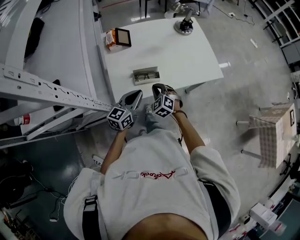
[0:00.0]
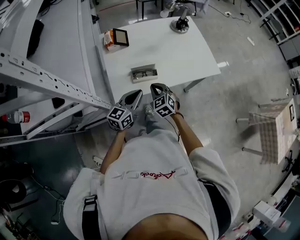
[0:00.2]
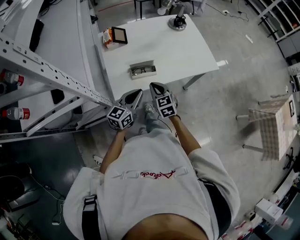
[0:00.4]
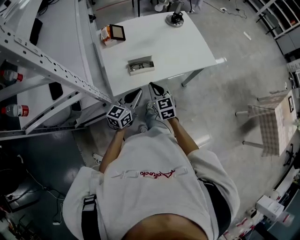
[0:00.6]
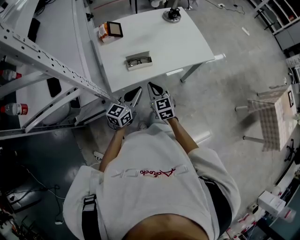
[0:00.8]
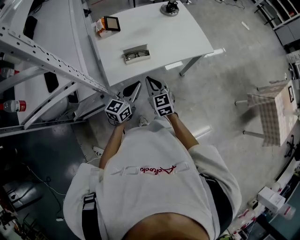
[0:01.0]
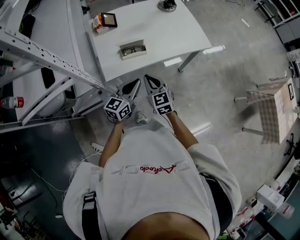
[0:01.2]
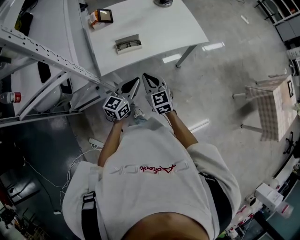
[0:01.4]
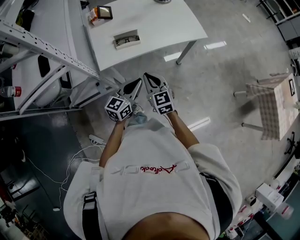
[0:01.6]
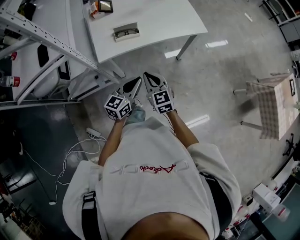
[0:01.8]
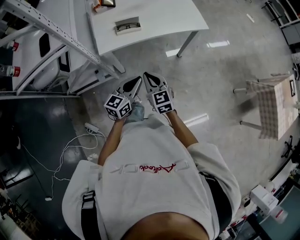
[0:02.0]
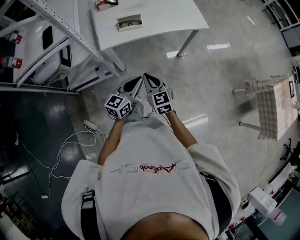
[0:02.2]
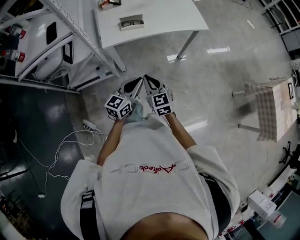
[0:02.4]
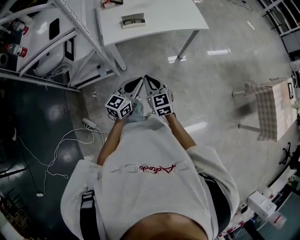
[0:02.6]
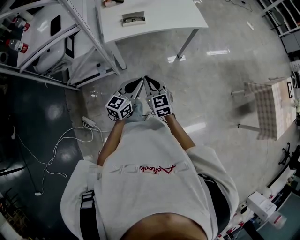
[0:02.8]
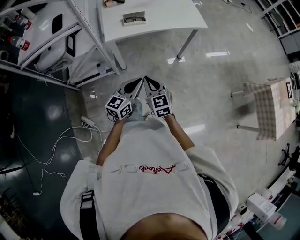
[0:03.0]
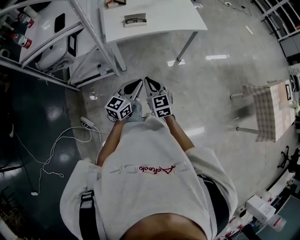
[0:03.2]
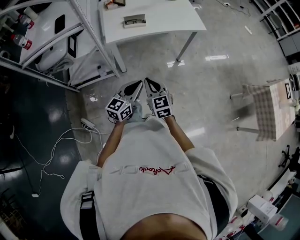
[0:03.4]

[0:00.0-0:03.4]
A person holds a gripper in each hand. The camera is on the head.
0:00.0 to 0:01.6: The right gripper is displaced backward, upward and to the right by some 25 cm, and rotates some 40 degrees, while the left gripper shifts some 20 cm backward and to the right.
0:01.6 to 0:03.4: The grippers both shift backward by about 20 cm.

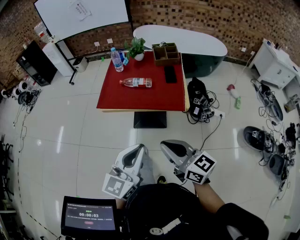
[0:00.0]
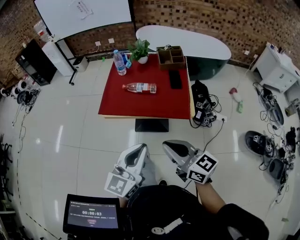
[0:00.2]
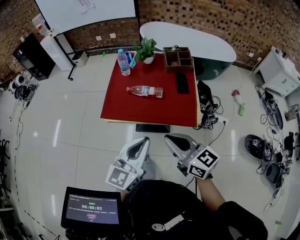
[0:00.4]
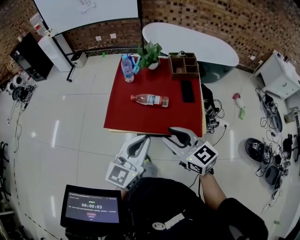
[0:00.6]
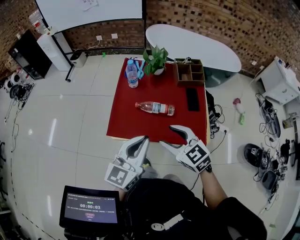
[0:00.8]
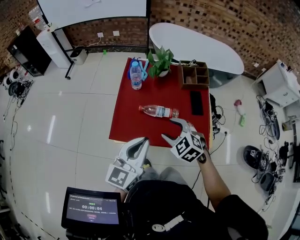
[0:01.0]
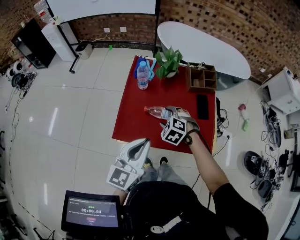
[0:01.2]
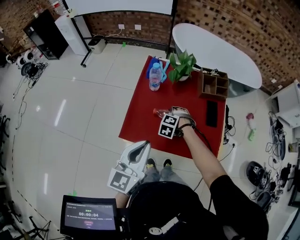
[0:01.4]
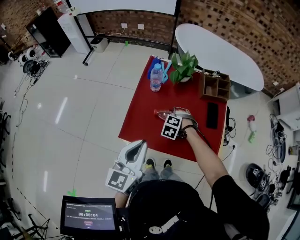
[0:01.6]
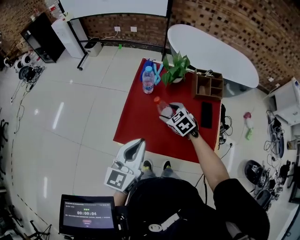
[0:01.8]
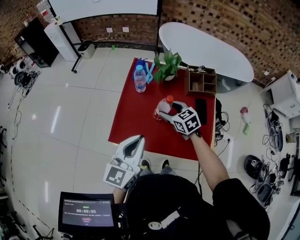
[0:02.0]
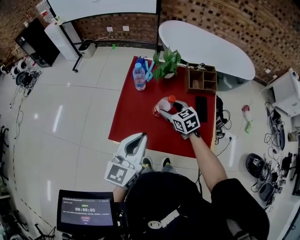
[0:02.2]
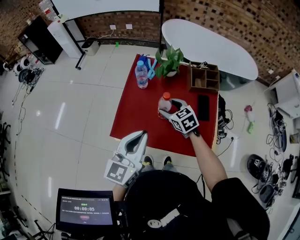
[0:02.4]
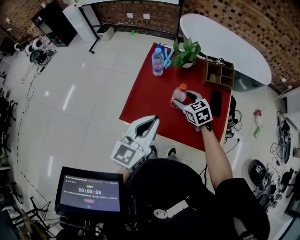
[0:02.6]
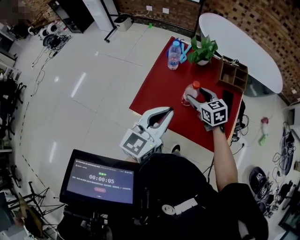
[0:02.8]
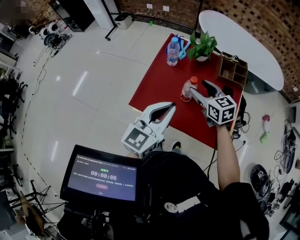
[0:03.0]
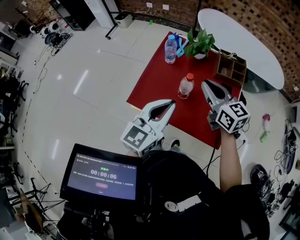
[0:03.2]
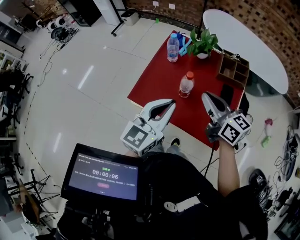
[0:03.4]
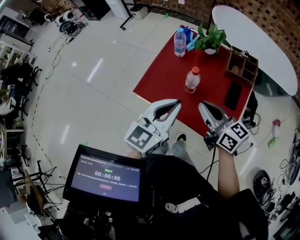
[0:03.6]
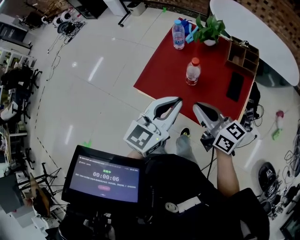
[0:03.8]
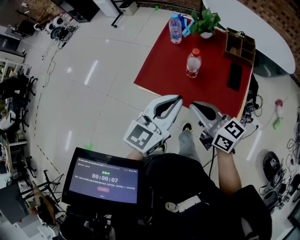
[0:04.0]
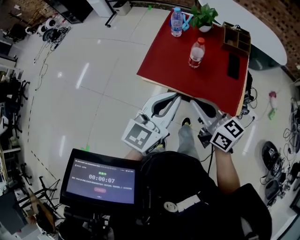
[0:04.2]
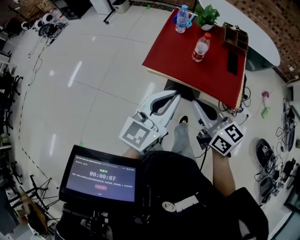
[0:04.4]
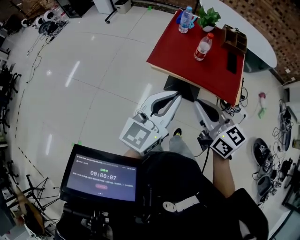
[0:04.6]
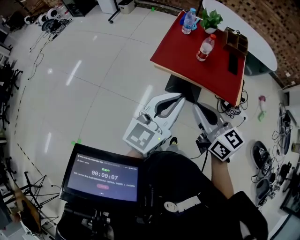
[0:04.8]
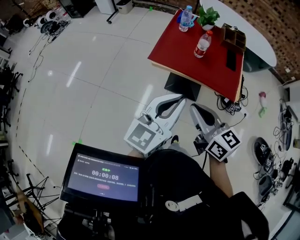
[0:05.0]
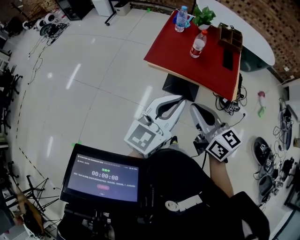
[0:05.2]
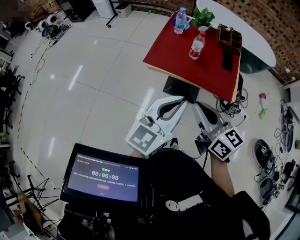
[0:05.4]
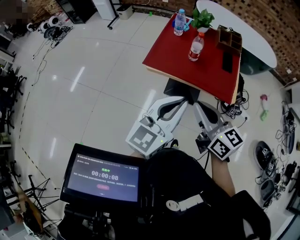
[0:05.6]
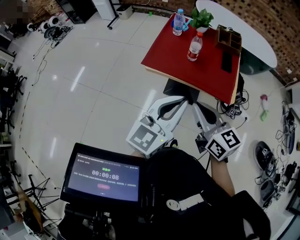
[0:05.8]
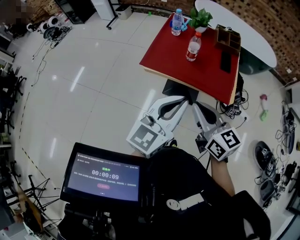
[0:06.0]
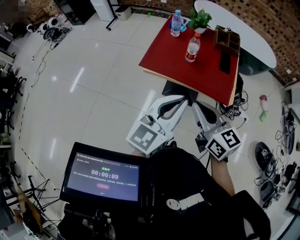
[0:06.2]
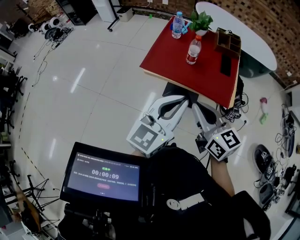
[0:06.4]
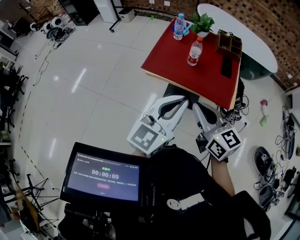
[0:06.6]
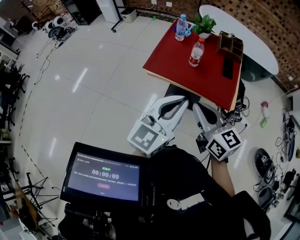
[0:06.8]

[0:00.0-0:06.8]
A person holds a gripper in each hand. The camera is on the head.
0:00.0 to 0:01.4: The left gripper shifts roughly 40 cm forward and to the left; the right gripper heads forward and downward, covering approximately 60 cm, angles its fingers downward, by roughly 70 degrees, and opens.
0:01.4 to 0:02.8: The right gripper shifts about 15 cm upward, and points its fingers about 30 degrees further upward. Meanwhile the left gripper moves roughly 5 cm.
0:02.8 to 0:04.0: The right gripper is displaced backward and upward by some 25 cm, changes its angle by about 40 degrees, and closes. The left gripper moves backward, roughly 10 cm.
0:04.0 to 0:05.4: Both grippers move backward and to the left, roughly 20 cm.
0:05.4 to 0:06.8: The grippers make only small movements.

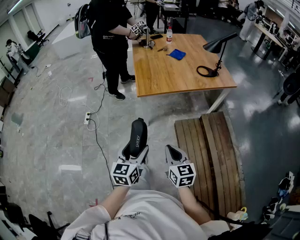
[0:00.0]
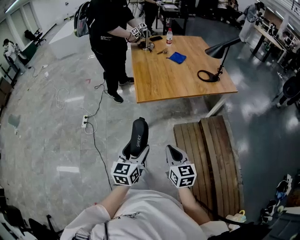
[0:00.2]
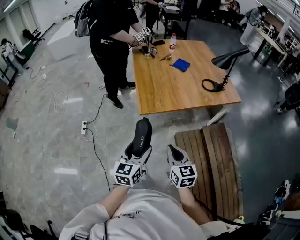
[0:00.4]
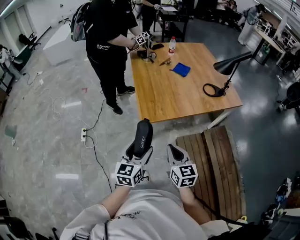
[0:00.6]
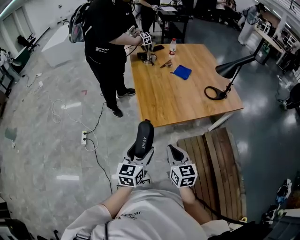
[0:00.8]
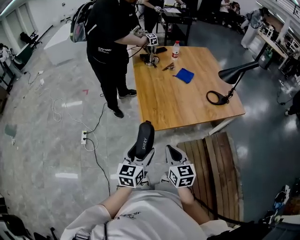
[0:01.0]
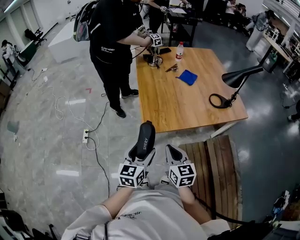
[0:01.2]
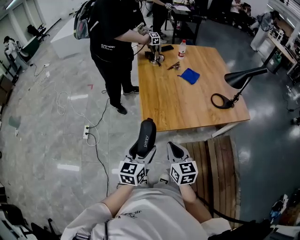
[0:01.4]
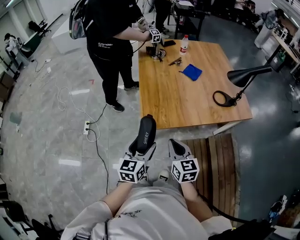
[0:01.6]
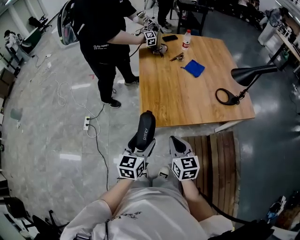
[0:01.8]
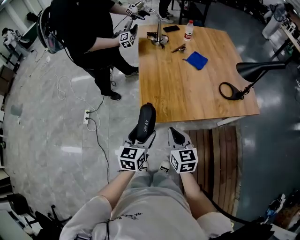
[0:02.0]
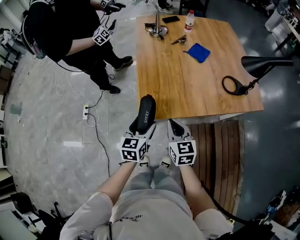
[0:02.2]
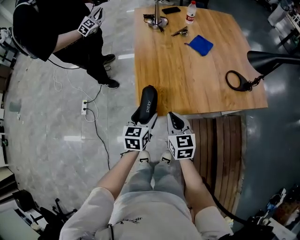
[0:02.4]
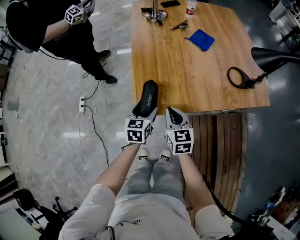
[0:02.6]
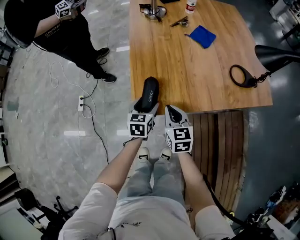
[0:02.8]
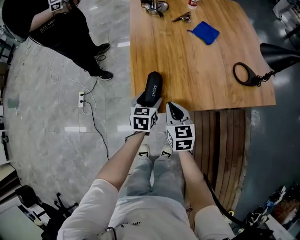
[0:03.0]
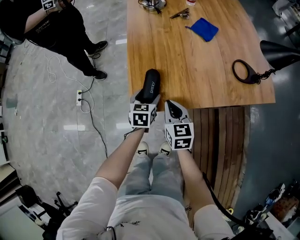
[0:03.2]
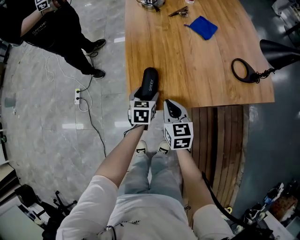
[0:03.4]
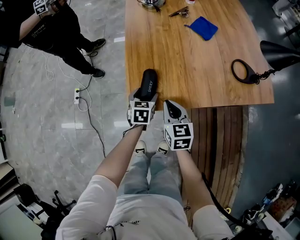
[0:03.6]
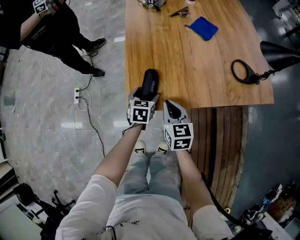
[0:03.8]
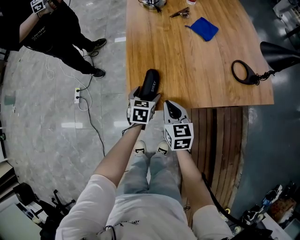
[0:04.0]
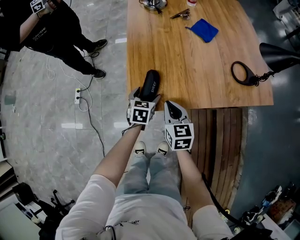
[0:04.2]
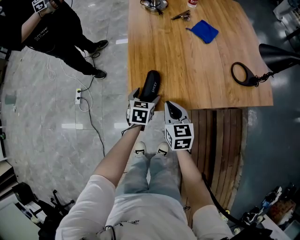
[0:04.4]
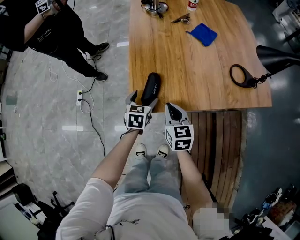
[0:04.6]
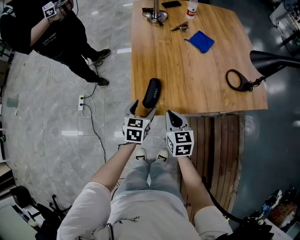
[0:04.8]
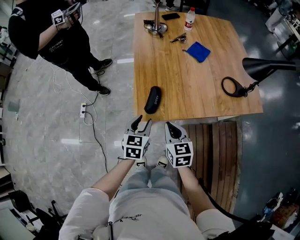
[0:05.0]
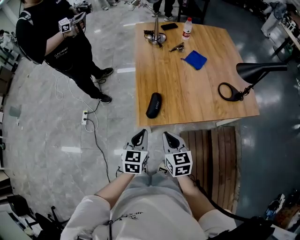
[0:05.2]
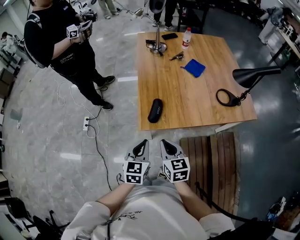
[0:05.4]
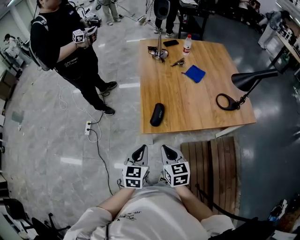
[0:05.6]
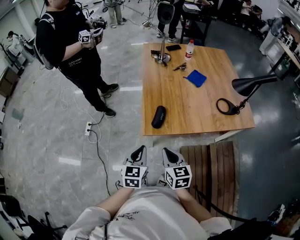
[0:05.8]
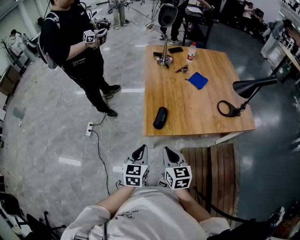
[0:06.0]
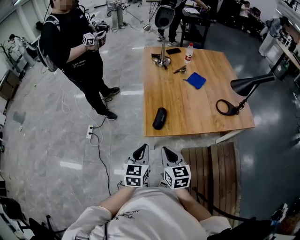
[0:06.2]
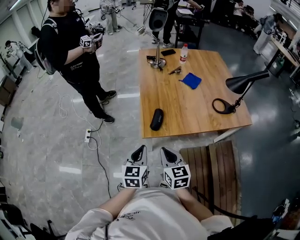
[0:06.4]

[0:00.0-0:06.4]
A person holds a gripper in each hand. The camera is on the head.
0:00.0 to 0:01.6: The grippers both shift forward by about 35 cm.
0:01.6 to 0:03.2: The left gripper goes about 35 cm downward and forward, and swivels some 20 degrees, while the right gripper goes roughly 25 cm forward and downward.
0:03.2 to 0:04.8: The right gripper changes place by some 5 cm, while the left gripper heads upward and backward, covering approximately 10 cm.
0:04.8 to 0:06.4: The right gripper shifts roughly 20 cm backward, upward and to the left. The left gripper heads backward and upward, covering roughly 25 cm, and closes up.

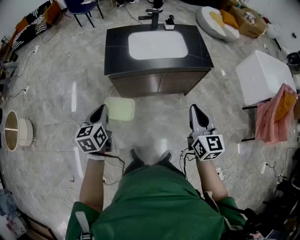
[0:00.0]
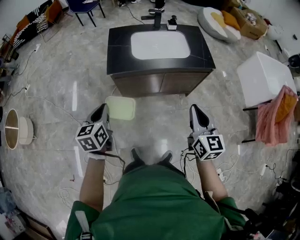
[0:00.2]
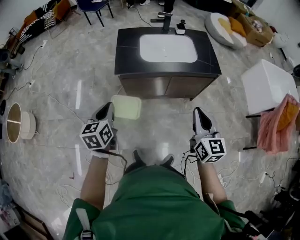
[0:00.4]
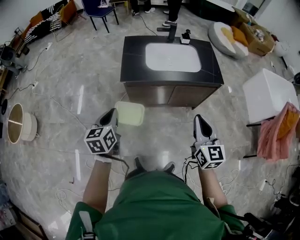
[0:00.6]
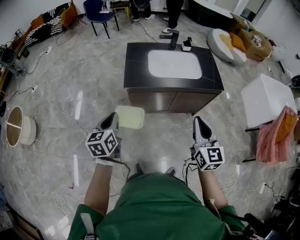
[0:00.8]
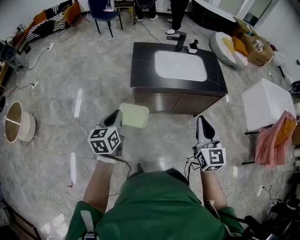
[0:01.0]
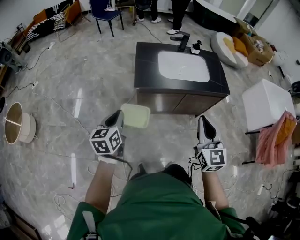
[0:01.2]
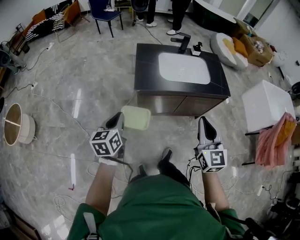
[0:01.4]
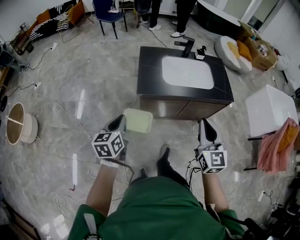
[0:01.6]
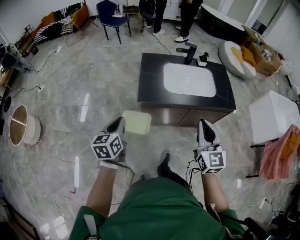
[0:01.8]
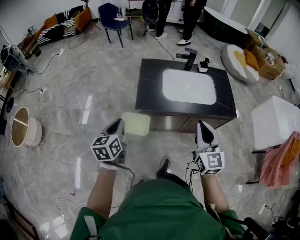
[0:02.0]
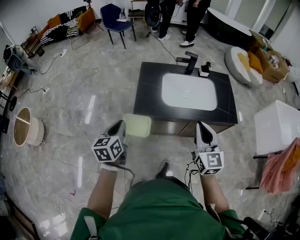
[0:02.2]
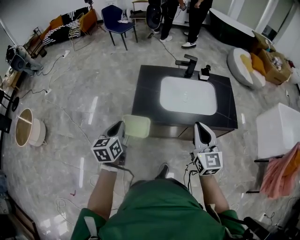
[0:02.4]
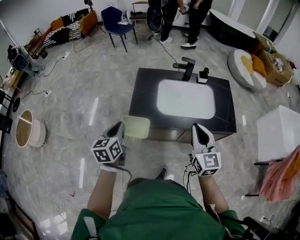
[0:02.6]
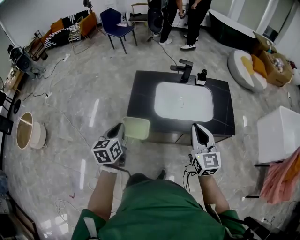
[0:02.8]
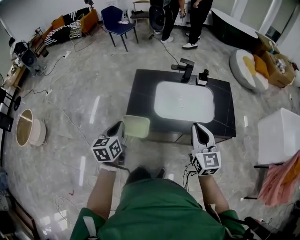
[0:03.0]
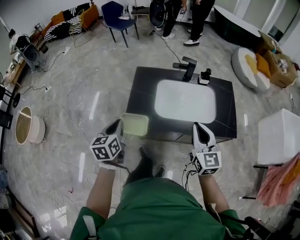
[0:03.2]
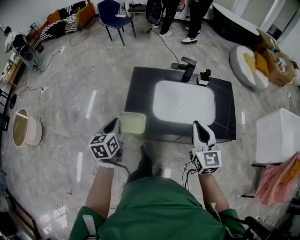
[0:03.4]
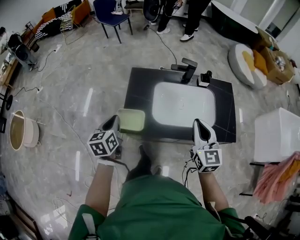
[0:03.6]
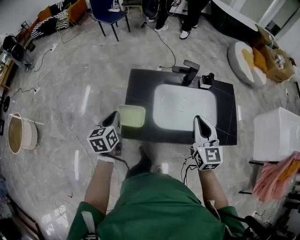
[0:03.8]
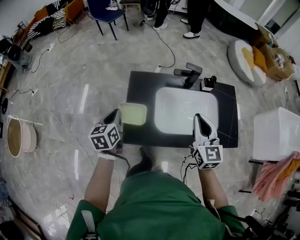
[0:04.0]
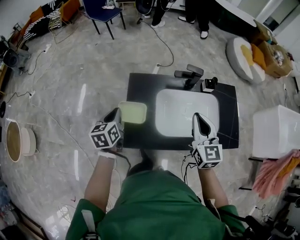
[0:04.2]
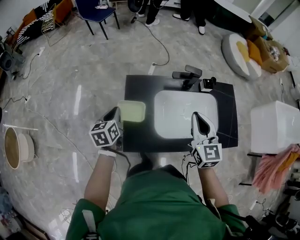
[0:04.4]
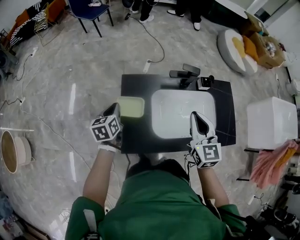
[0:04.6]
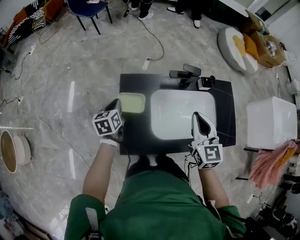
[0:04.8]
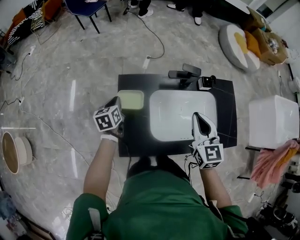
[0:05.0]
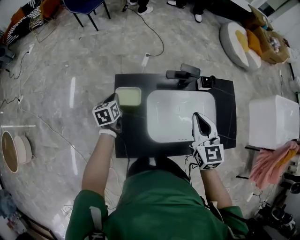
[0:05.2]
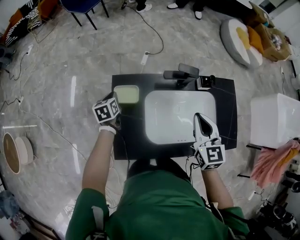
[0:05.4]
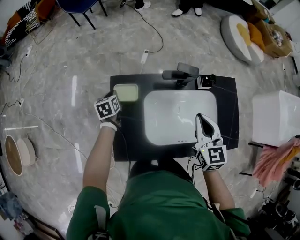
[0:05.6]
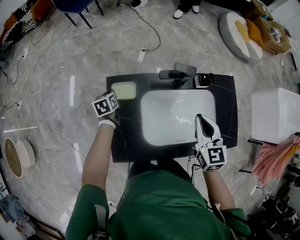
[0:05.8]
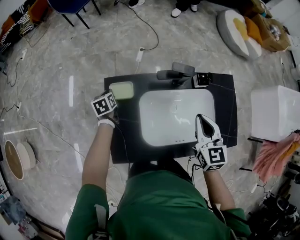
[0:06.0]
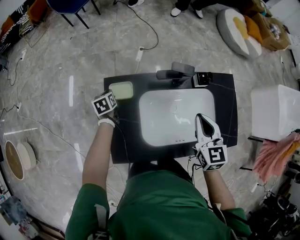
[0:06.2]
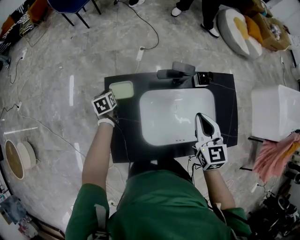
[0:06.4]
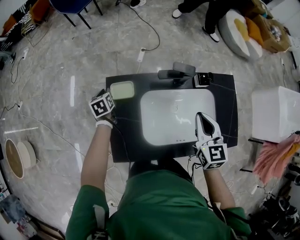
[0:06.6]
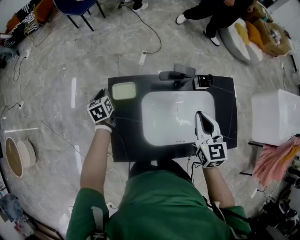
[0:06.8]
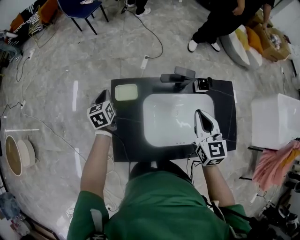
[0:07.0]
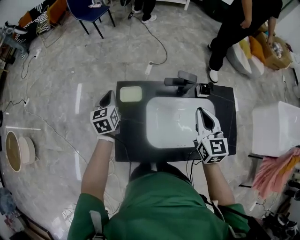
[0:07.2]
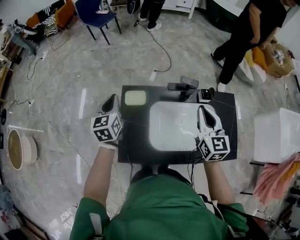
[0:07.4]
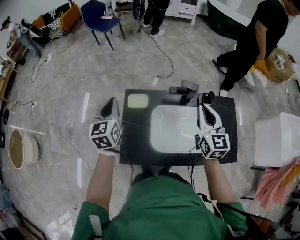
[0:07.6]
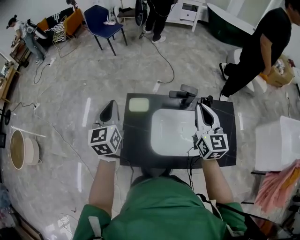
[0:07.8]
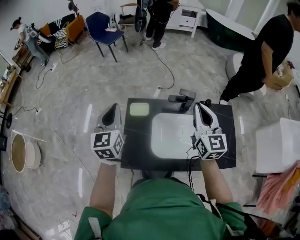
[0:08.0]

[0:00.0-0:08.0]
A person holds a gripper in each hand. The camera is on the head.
0:00.0 to 0:01.6: The right gripper shifts roughly 20 cm to the left and forward. Meanwhile the left gripper moves to the left, approximately 15 cm.
0:01.6 to 0:03.2: Both grippers move forward and to the right, approximately 30 cm.
0:03.2 to 0:04.8: Both grippers travel together forward, about 30 cm.
0:04.8 to 0:06.4: The left gripper shifts approximately 20 cm downward and forward; the right gripper heads to the right, downward and forward, covering roughly 15 cm.
0:06.4 to 0:08.0: The right gripper heads upward, covering approximately 15 cm, and rotates roughly 20 degrees, while the left gripper shifts roughly 40 cm upward and backward, and points its fingers roughly 40 degrees further upward.
